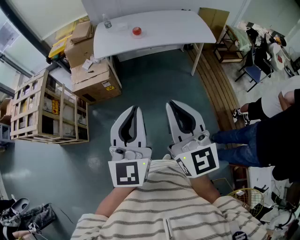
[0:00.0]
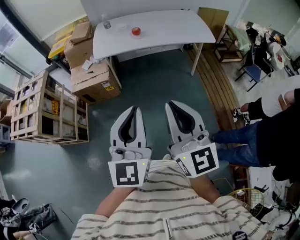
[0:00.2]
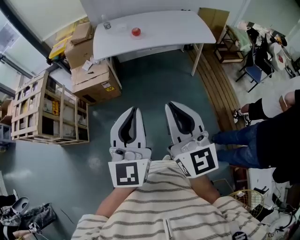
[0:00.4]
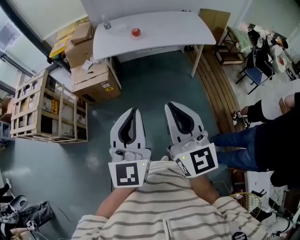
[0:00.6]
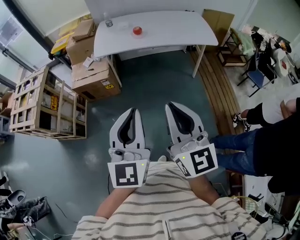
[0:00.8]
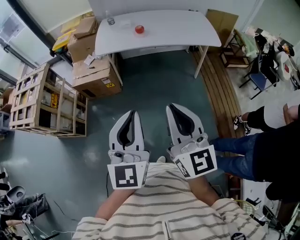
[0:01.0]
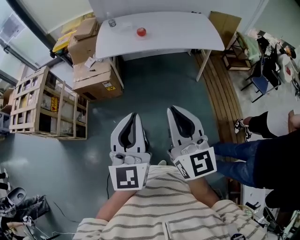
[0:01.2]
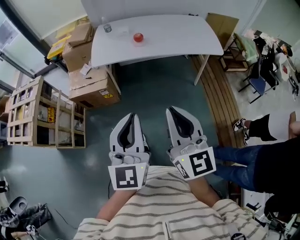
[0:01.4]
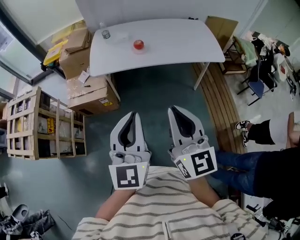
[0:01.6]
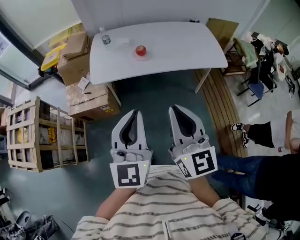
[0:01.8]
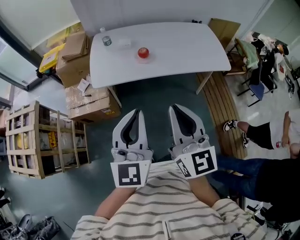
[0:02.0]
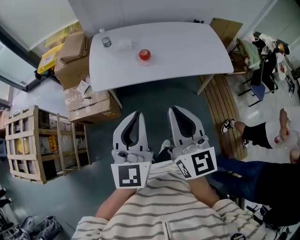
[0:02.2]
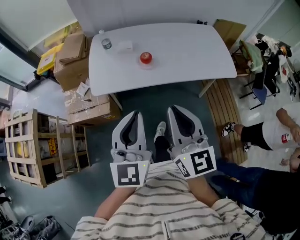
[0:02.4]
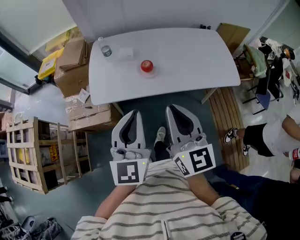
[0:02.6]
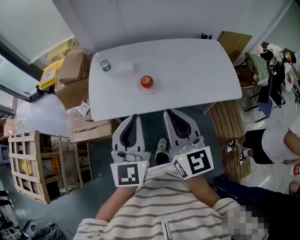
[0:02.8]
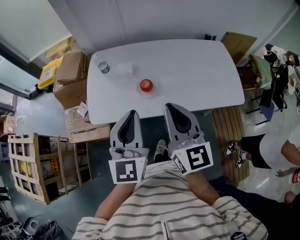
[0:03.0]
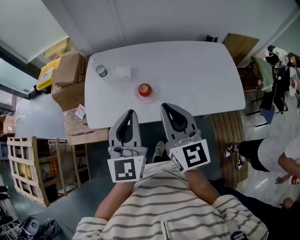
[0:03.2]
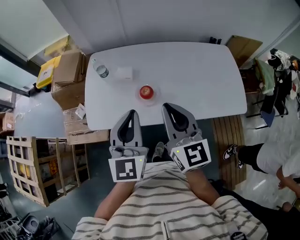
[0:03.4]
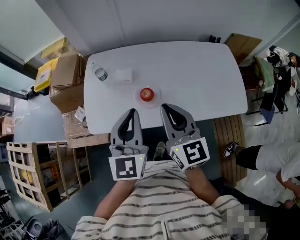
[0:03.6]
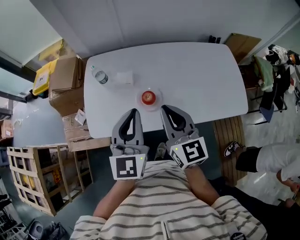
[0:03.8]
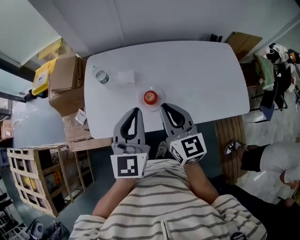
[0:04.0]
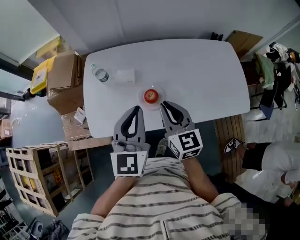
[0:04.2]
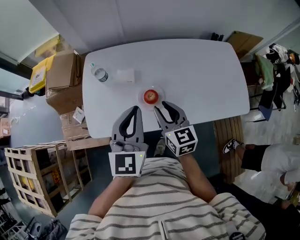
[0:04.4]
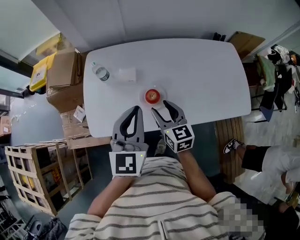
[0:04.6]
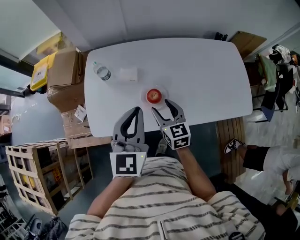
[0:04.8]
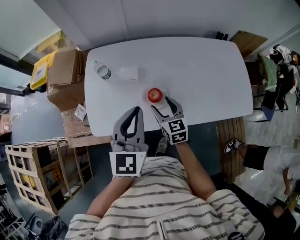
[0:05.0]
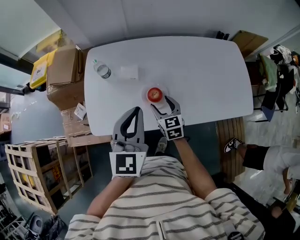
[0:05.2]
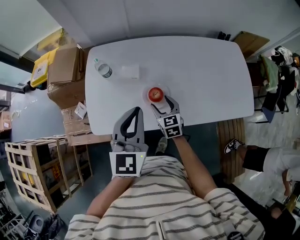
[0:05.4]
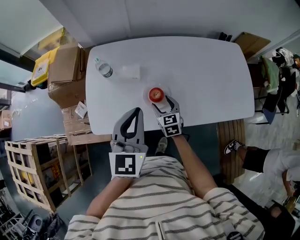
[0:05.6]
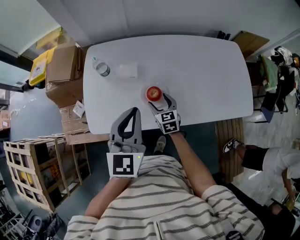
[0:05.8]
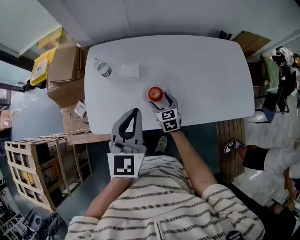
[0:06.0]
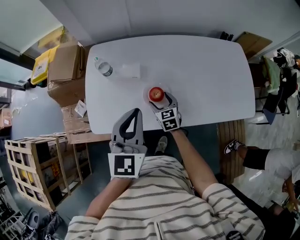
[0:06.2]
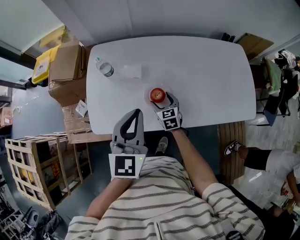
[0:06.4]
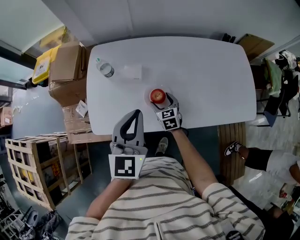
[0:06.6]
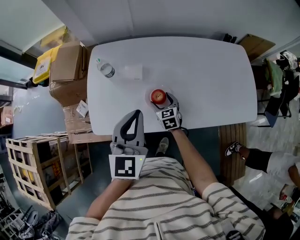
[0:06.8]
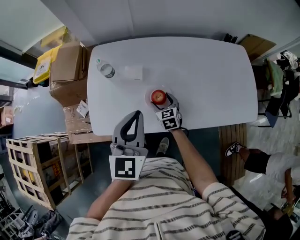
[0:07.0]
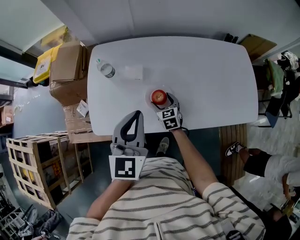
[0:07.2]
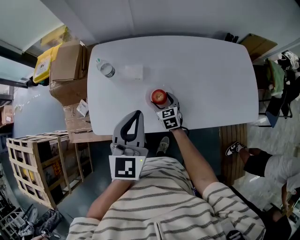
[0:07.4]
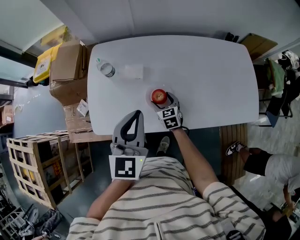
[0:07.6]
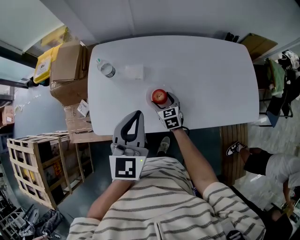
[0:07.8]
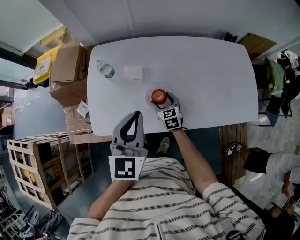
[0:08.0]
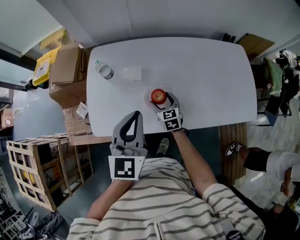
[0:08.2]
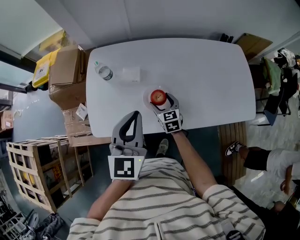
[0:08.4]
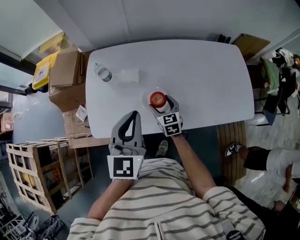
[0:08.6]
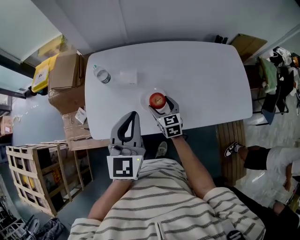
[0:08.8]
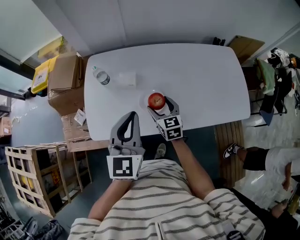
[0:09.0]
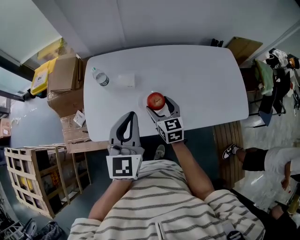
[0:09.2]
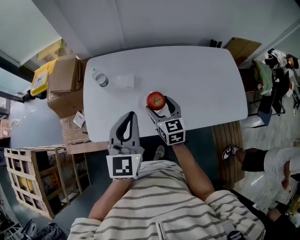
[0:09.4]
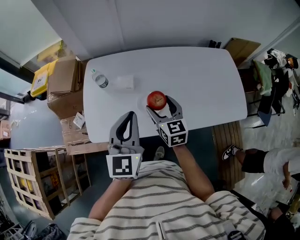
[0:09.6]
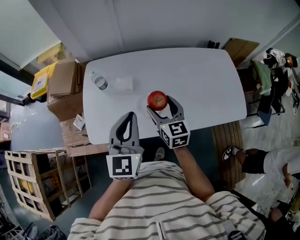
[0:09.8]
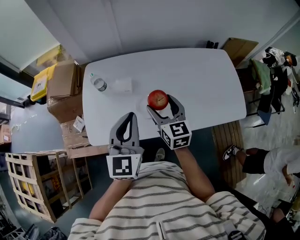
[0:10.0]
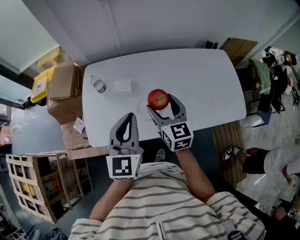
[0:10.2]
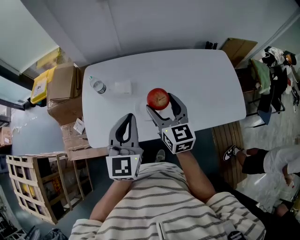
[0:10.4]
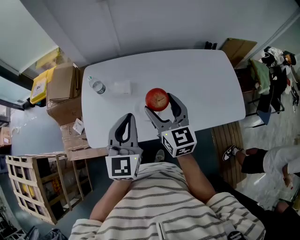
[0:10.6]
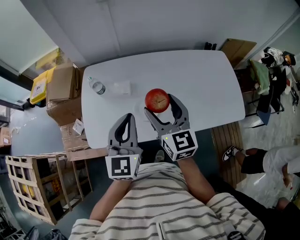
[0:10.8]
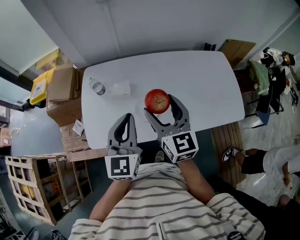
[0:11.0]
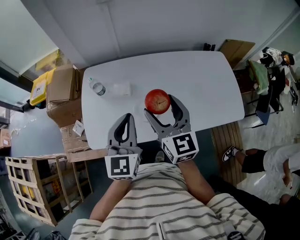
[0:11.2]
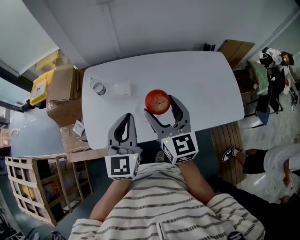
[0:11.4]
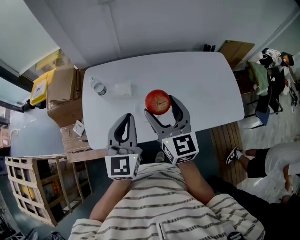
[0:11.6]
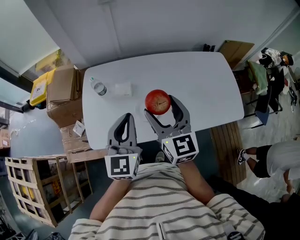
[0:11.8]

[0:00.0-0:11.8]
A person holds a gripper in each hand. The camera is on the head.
0:00.0 to 0:01.4: The two grippers go roughly 10 cm forward.
0:01.4 to 0:03.0: The pair of grippers is taken forward, roughly 50 cm.
0:03.0 to 0:04.4: The right gripper goes approximately 25 cm downward and forward, and changes its angle by some 20 degrees, while the left gripper heads forward and downward, covering about 15 cm.
0:04.4 to 0:06.0: The right gripper travels downward by about 20 cm, and opens.
0:06.0 to 0:07.4: The grippers stay close to where they were, moving slightly.
0:07.4 to 0:08.8: The right gripper moves upward, roughly 10 cm.
0:08.8 to 0:10.4: The right gripper is displaced upward by roughly 20 cm.
0:10.4 to 0:11.8: The right gripper is displaced upward by roughly 5 cm.

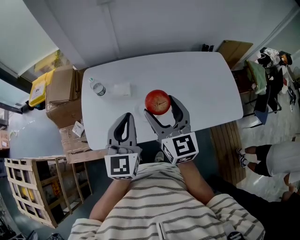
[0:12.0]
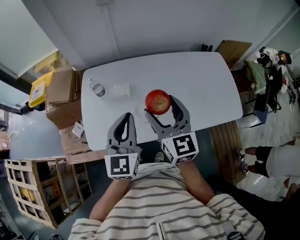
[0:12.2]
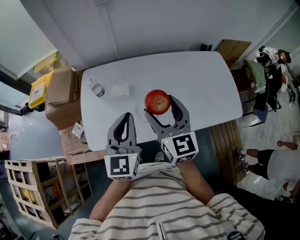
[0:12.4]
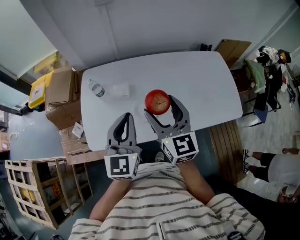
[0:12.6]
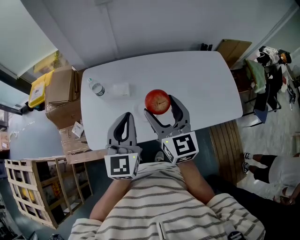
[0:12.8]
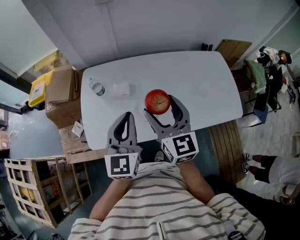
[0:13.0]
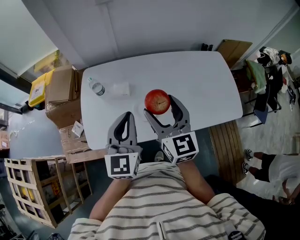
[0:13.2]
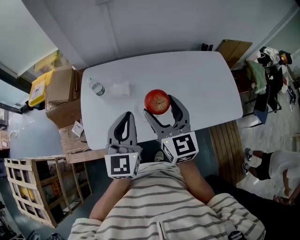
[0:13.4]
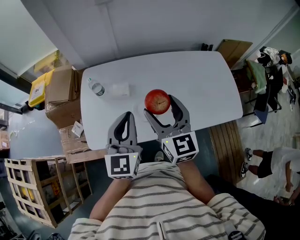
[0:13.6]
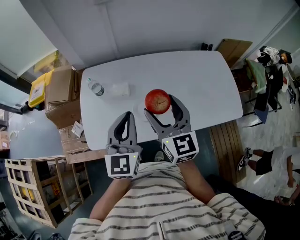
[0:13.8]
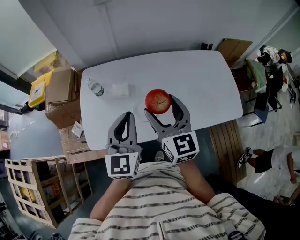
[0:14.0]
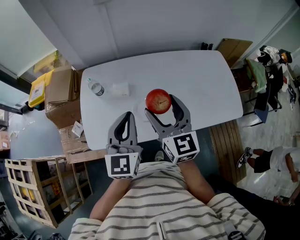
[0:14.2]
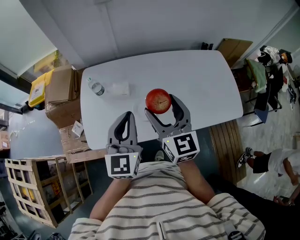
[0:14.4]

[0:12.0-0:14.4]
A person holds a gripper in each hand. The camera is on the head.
0:12.0 to 0:14.4: Both grippers stay about where they are.

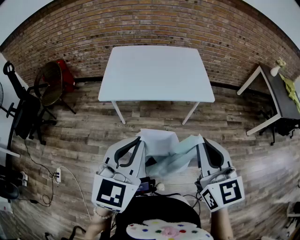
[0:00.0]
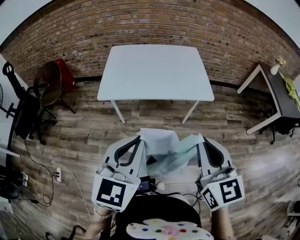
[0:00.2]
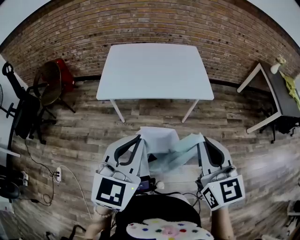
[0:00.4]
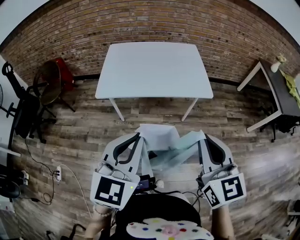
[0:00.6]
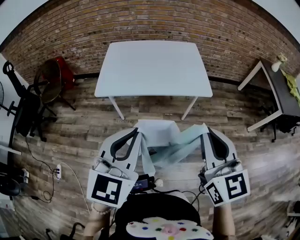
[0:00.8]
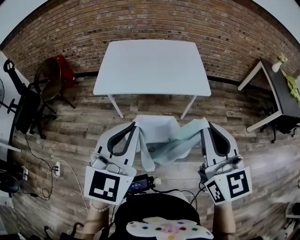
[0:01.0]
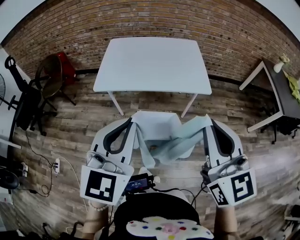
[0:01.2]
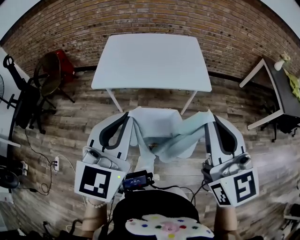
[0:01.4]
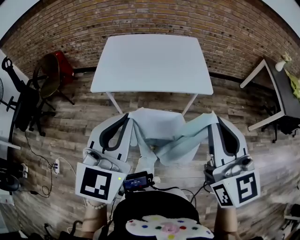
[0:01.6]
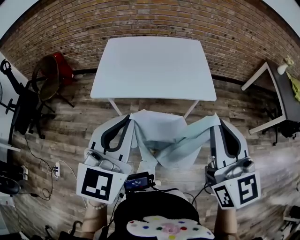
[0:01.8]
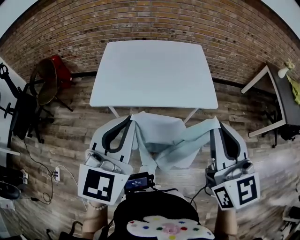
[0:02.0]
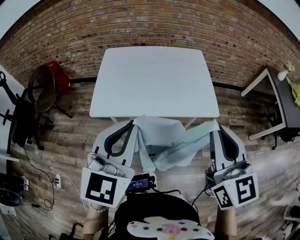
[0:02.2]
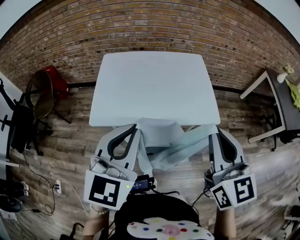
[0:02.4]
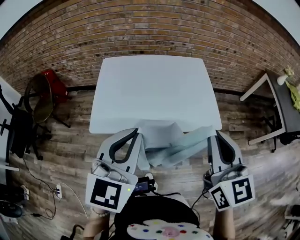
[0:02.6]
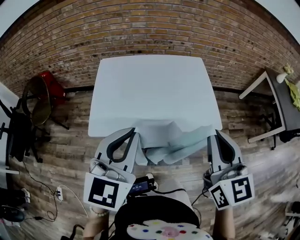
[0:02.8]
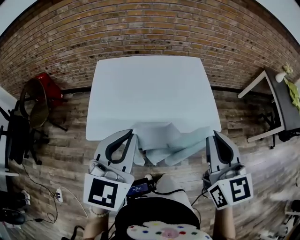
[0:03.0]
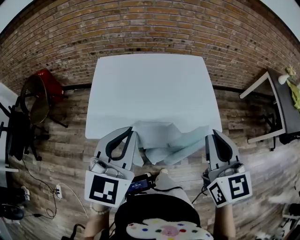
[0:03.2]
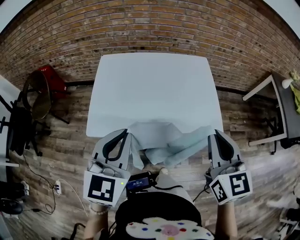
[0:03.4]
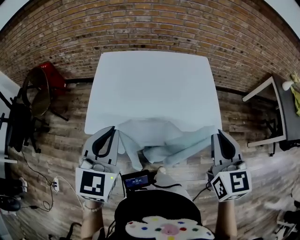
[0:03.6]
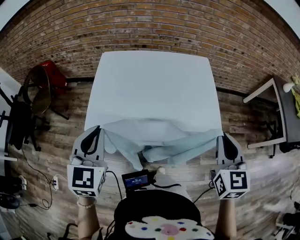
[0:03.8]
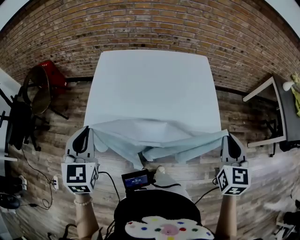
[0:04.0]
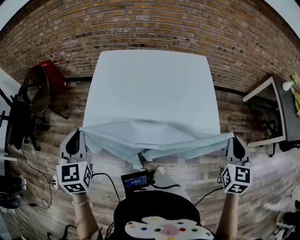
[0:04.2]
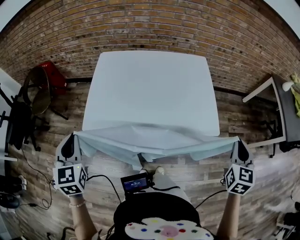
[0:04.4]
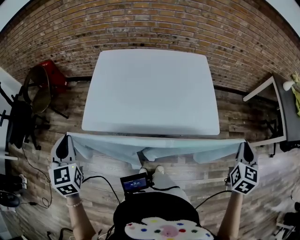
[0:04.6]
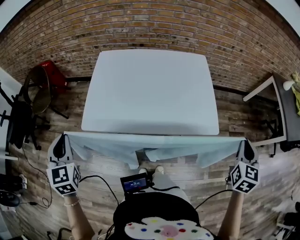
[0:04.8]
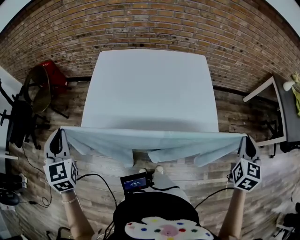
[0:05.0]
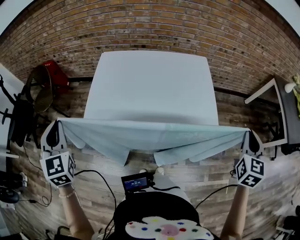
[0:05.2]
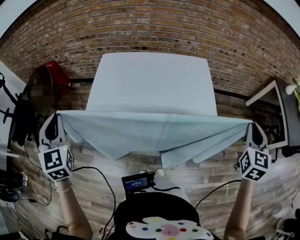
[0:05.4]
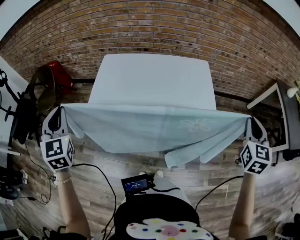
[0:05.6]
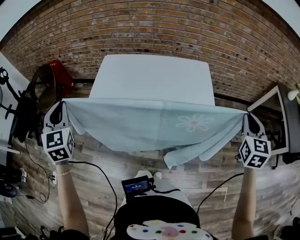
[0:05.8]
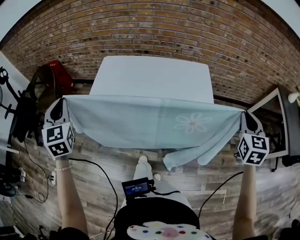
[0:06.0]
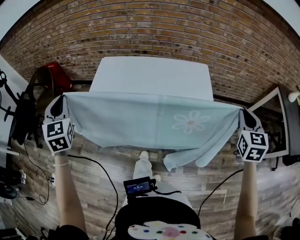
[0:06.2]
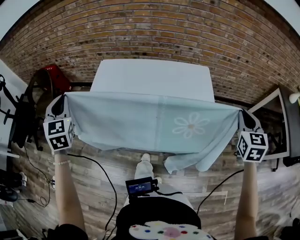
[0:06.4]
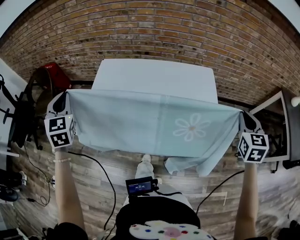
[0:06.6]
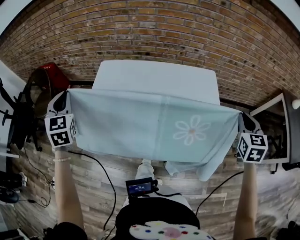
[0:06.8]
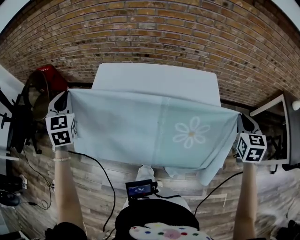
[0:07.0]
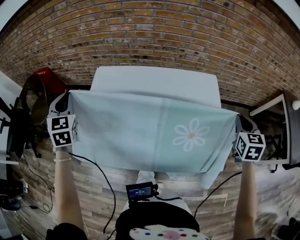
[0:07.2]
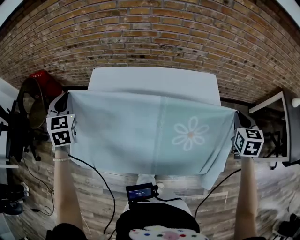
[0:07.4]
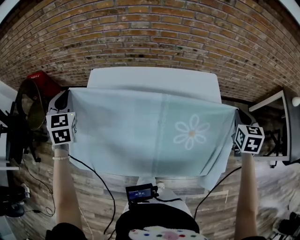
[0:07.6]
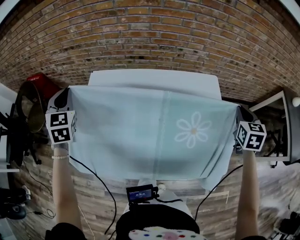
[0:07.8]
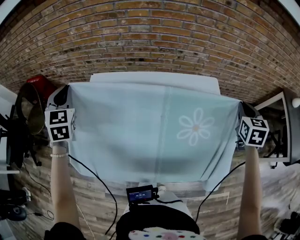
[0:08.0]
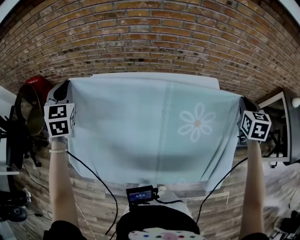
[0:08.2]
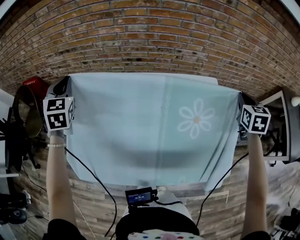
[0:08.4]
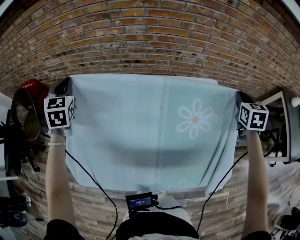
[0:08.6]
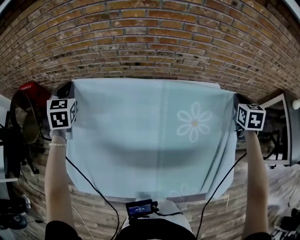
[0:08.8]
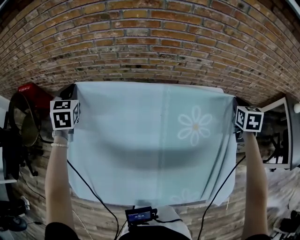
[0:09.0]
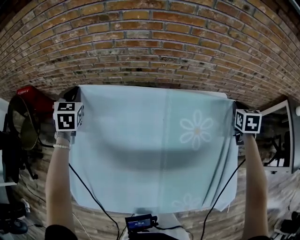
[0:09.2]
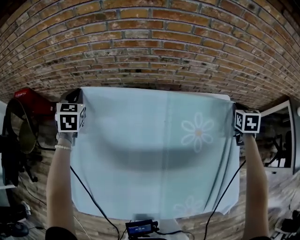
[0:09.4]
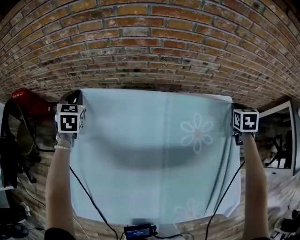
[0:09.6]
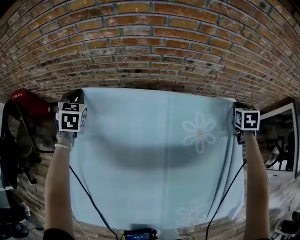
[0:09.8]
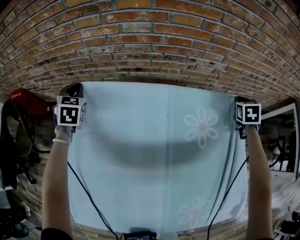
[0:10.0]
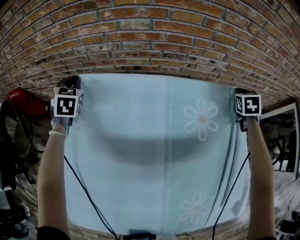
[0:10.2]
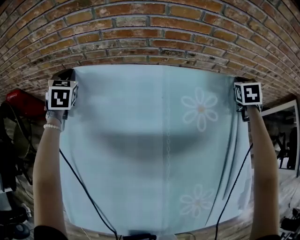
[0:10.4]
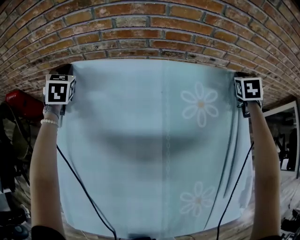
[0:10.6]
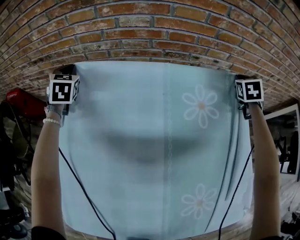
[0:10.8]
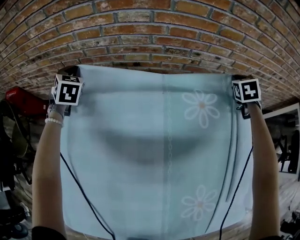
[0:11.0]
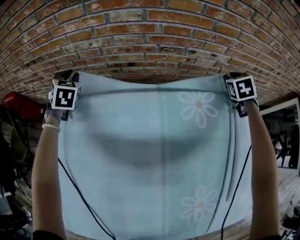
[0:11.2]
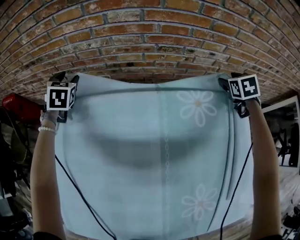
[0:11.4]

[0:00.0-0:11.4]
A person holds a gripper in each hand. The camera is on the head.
0:00.0 to 0:01.4: The left gripper ends up about 5 cm from where it was; the right gripper travels upward and to the right by approximately 10 cm.
0:01.4 to 0:02.8: The two grippers go about 25 cm forward.
0:02.8 to 0:04.2: The right gripper is displaced to the right and downward by approximately 20 cm, and turns by roughly 30 degrees; the left gripper moves to the left and downward, about 20 cm, and changes its angle by some 30 degrees.
0:04.2 to 0:05.6: The right gripper goes about 10 cm to the right and forward, while the left gripper is displaced upward by roughly 5 cm.
0:05.6 to 0:07.2: The right gripper heads forward and downward, covering about 25 cm. The left gripper shifts roughly 25 cm forward.
0:07.2 to 0:08.6: The two grippers go about 20 cm forward.
0:08.6 to 0:10.0: The grippers both shift downward and forward by approximately 25 cm.
0:10.0 to 0:11.4: The right gripper shifts roughly 10 cm forward and to the left, and opens its fingers. Meanwhile the left gripper moves forward, about 5 cm, and opens its fingers.
